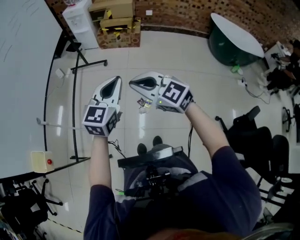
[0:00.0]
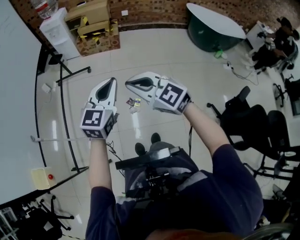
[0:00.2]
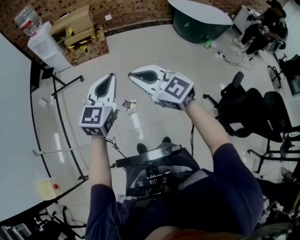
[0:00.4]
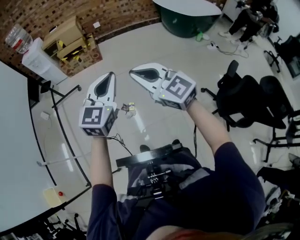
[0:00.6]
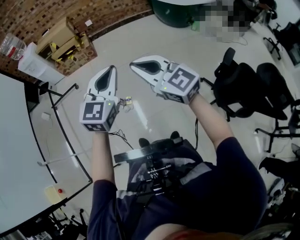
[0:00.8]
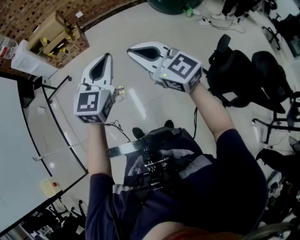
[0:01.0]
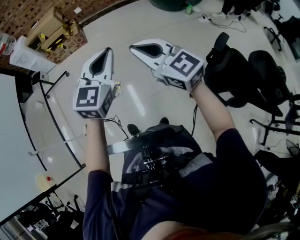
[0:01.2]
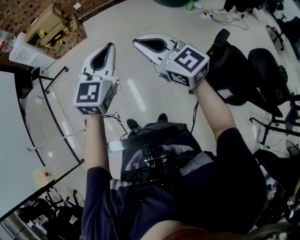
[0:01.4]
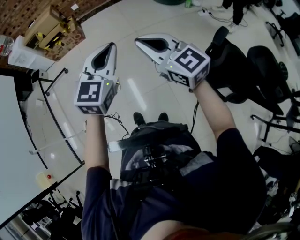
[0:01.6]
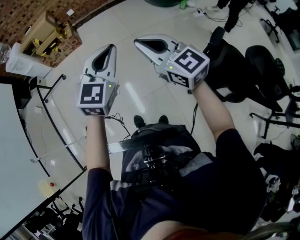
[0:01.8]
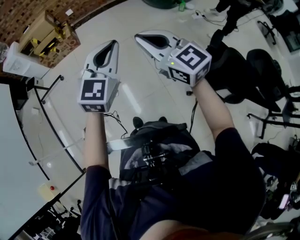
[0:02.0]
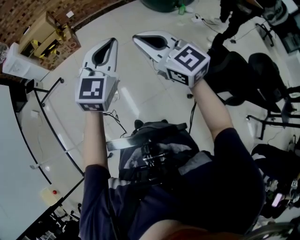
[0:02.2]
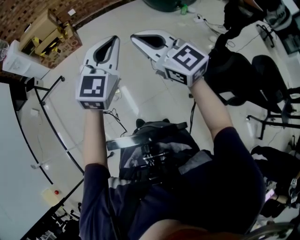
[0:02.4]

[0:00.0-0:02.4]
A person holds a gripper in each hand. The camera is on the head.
0:00.0 to 0:01.2: The left gripper ends up some 40 cm from where it was, and turns by roughly 20 degrees. Meanwhile the right gripper moves roughly 40 cm, and rotates roughly 40 degrees.
0:01.2 to 0:02.4: Both grippers travel together forward, approximately 5 cm.

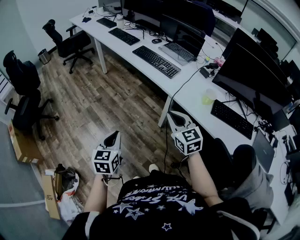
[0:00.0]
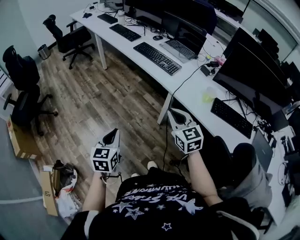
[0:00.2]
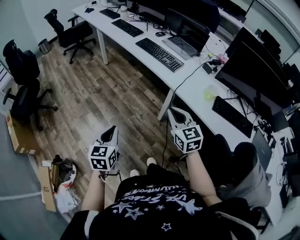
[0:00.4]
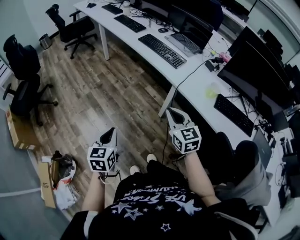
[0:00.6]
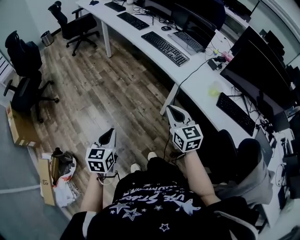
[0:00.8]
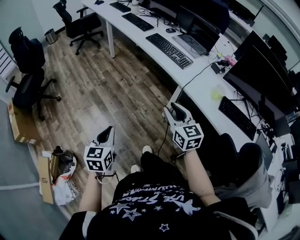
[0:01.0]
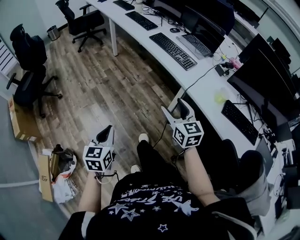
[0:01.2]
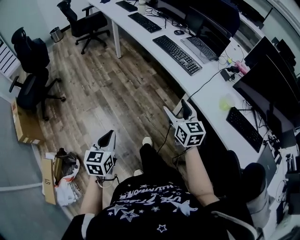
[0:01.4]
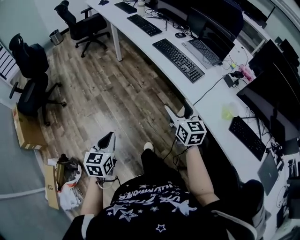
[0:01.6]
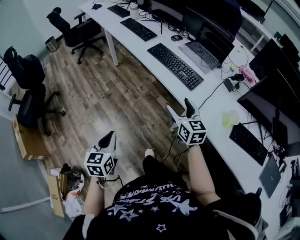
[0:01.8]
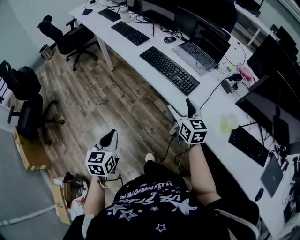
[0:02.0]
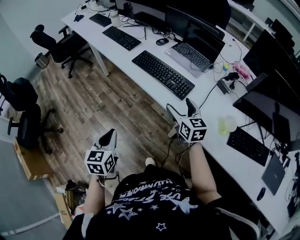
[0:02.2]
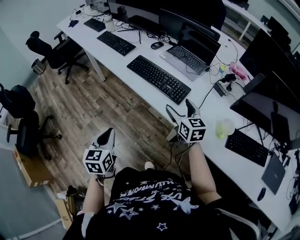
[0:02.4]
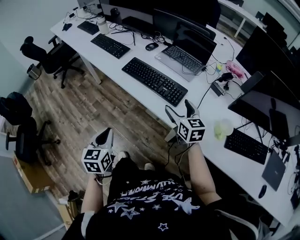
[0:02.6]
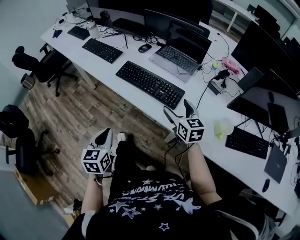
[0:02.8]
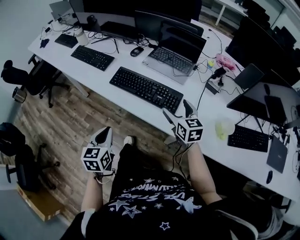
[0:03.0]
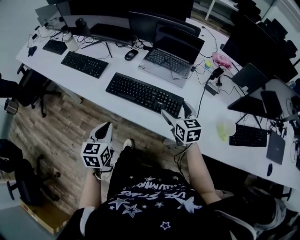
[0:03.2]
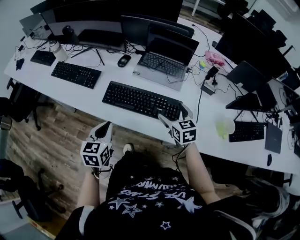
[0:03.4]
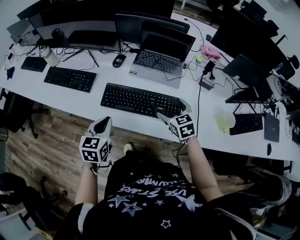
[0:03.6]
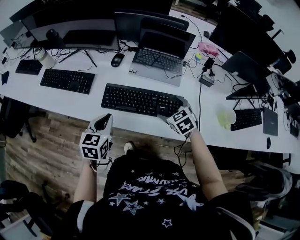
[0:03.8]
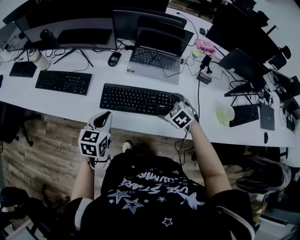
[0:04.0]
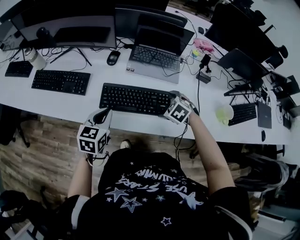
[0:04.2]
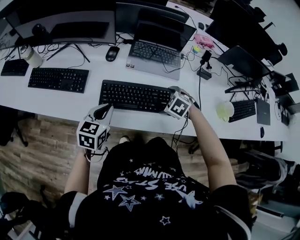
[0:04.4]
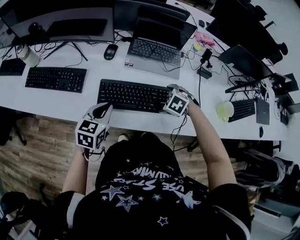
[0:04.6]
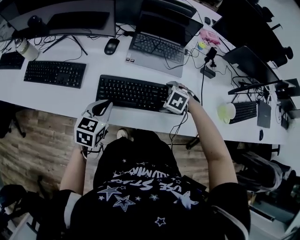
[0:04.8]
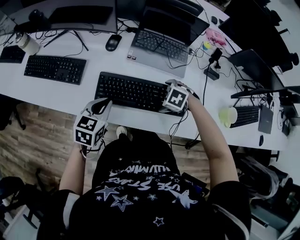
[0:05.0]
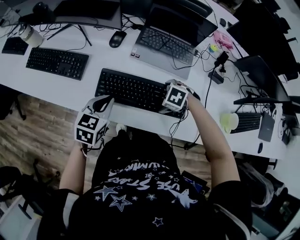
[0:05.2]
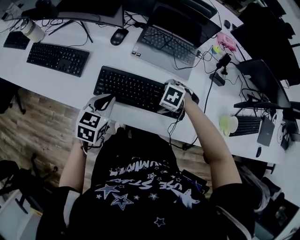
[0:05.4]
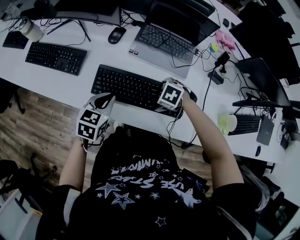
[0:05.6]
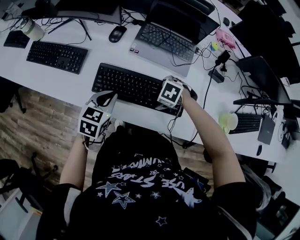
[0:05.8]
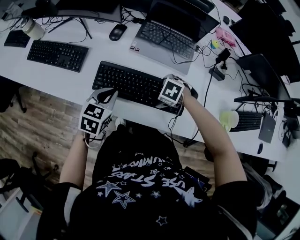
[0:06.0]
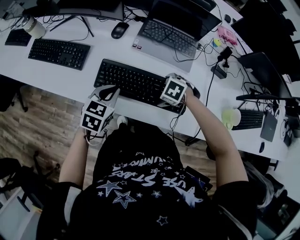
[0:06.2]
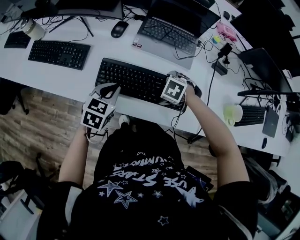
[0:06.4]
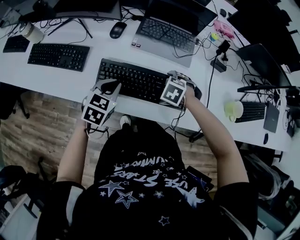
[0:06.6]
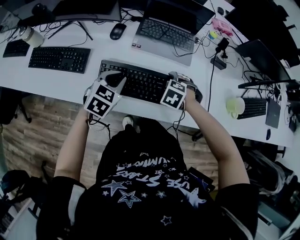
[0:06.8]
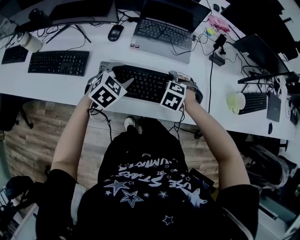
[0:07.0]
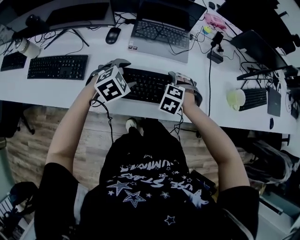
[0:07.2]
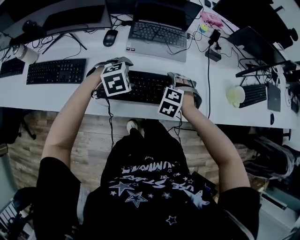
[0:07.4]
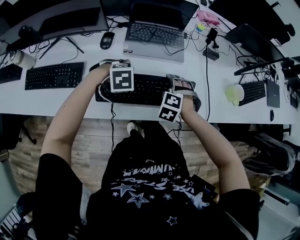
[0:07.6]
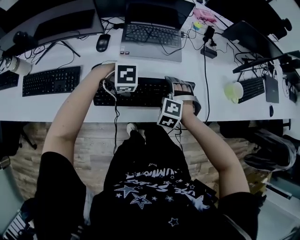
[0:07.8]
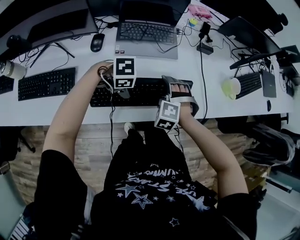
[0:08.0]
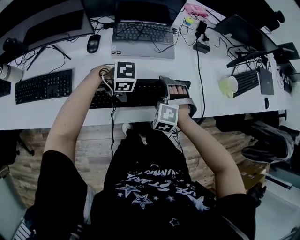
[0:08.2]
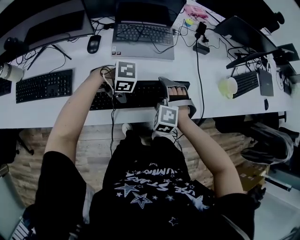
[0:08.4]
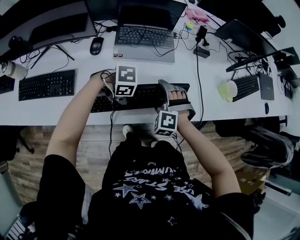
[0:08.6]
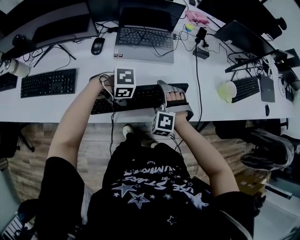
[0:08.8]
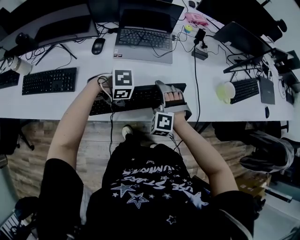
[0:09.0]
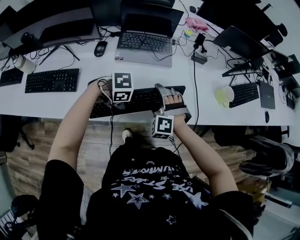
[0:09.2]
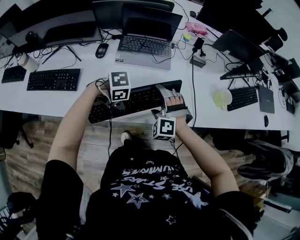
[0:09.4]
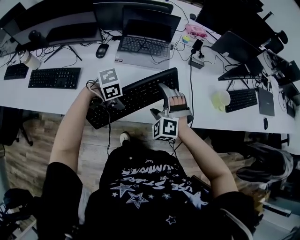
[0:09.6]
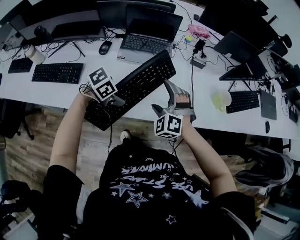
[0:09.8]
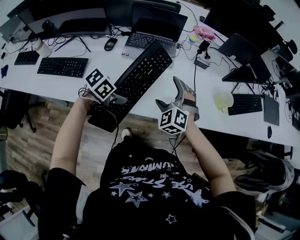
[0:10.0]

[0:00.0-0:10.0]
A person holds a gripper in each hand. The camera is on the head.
0:00.0 to 0:01.4: The right gripper heads forward and to the left, covering some 10 cm, and opens up; the left gripper travels to the left by roughly 10 cm.
0:01.4 to 0:02.8: The left gripper moves forward, some 40 cm. Meanwhile the right gripper goes some 35 cm forward and to the right.
0:02.8 to 0:04.2: The left gripper shifts by roughly 35 cm, and rotates roughly 40 degrees. The right gripper moves about 20 cm, and tips its fingers downward by approximately 50 degrees.
0:04.2 to 0:05.8: The left gripper shifts by some 5 cm. Meanwhile the right gripper is displaced downward by about 5 cm, and rotates approximately 30 degrees.
0:05.8 to 0:07.2: The right gripper rotates roughly 20 degrees. The left gripper ends up about 5 cm from where it was, rolls clockwise, seen from behind, by approximately 40 degrees, and opens its fingers.
0:07.2 to 0:08.6: The left gripper ends up some 10 cm from where it was, turns by roughly 60 degrees, and closes its fingers. The right gripper swivels approximately 20 degrees.
0:08.6 to 0:10.0: The two grippers go roughly 10 cm upward. The right gripper turns by some 30 degrees. The left gripper rotates roughly 60 degrees.

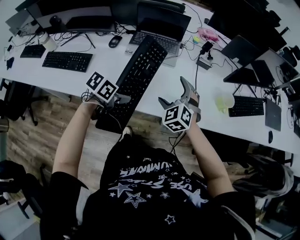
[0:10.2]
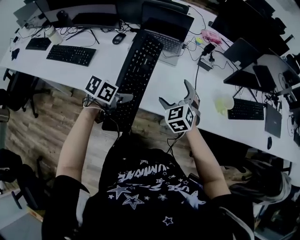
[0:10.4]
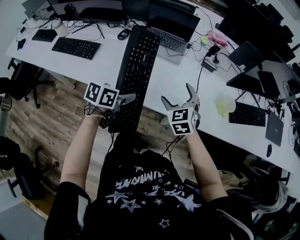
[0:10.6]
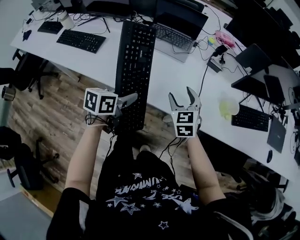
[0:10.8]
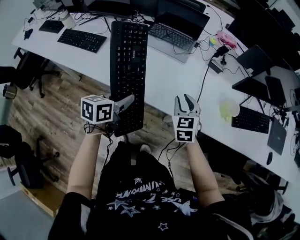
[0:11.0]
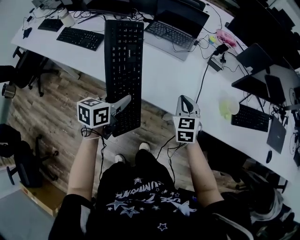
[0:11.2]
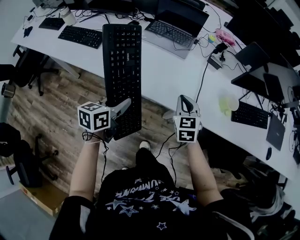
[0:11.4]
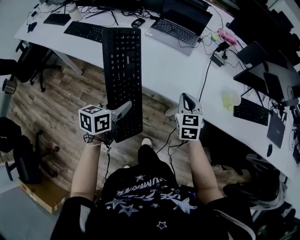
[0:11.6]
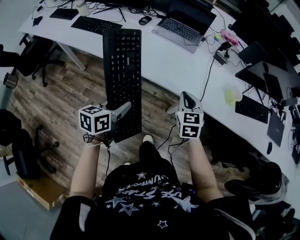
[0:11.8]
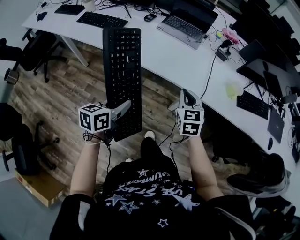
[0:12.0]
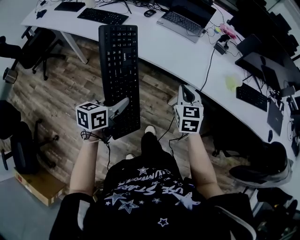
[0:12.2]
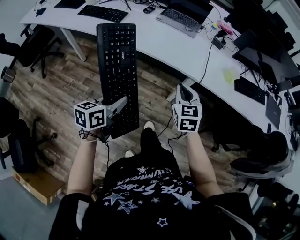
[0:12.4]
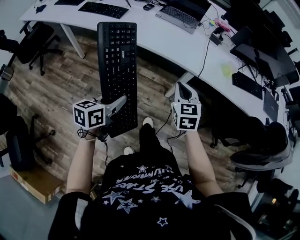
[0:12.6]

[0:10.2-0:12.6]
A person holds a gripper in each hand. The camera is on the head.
0:10.2 to 0:11.4: The right gripper shifts by some 10 cm, rotates roughly 30 degrees, and closes up. Meanwhile the left gripper ends up about 10 cm from where it was, and turns by roughly 40 degrees.
0:11.4 to 0:12.6: The grippers both shift backward by about 30 cm.

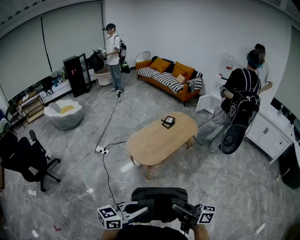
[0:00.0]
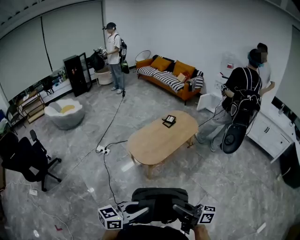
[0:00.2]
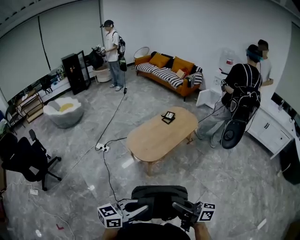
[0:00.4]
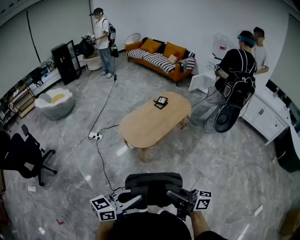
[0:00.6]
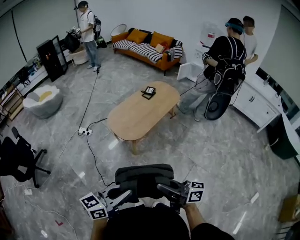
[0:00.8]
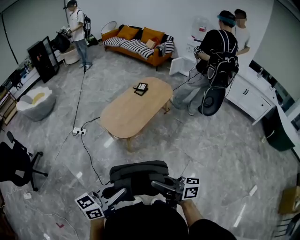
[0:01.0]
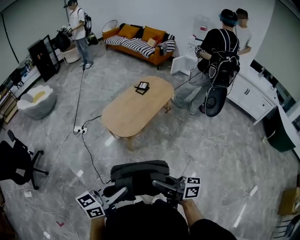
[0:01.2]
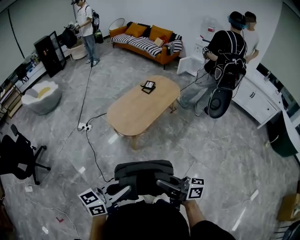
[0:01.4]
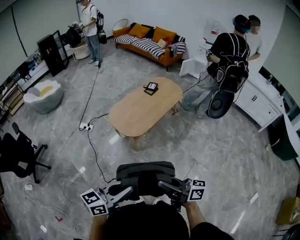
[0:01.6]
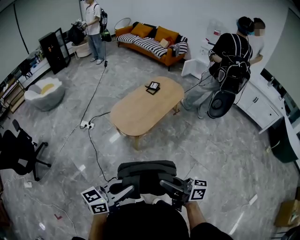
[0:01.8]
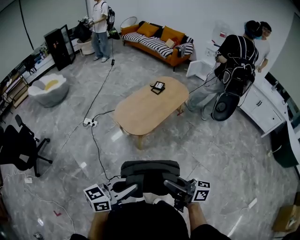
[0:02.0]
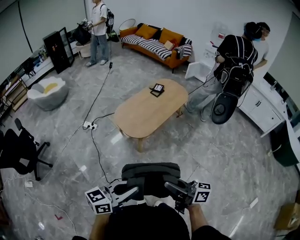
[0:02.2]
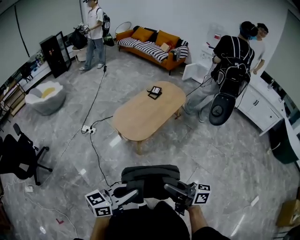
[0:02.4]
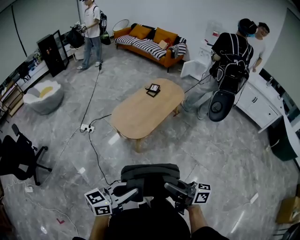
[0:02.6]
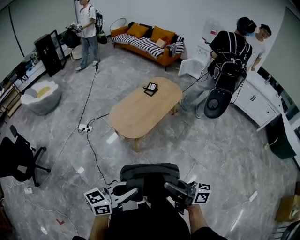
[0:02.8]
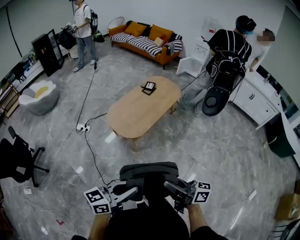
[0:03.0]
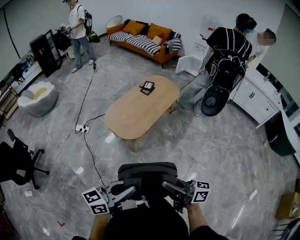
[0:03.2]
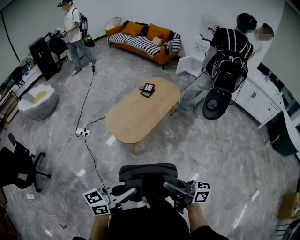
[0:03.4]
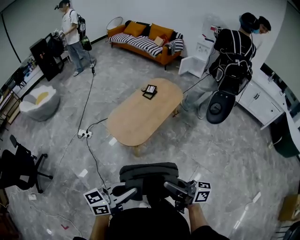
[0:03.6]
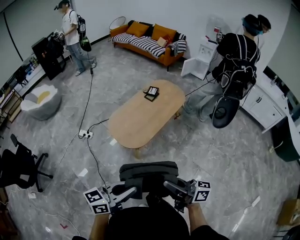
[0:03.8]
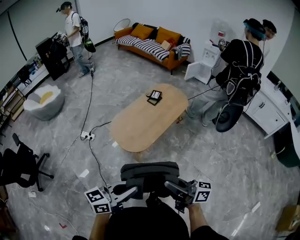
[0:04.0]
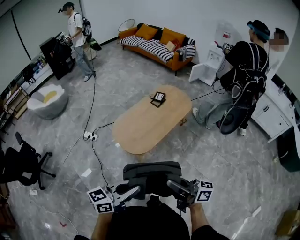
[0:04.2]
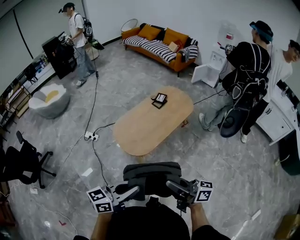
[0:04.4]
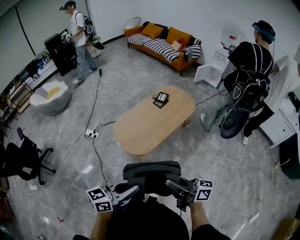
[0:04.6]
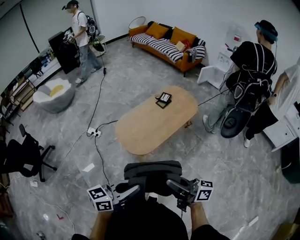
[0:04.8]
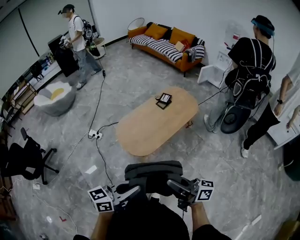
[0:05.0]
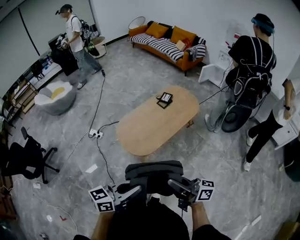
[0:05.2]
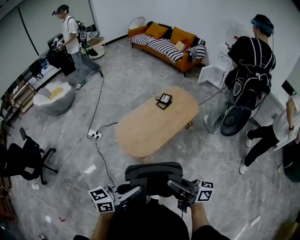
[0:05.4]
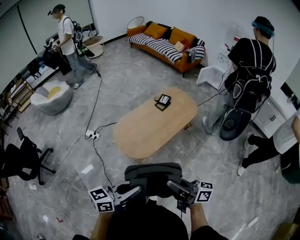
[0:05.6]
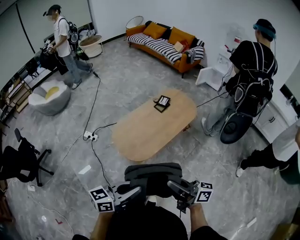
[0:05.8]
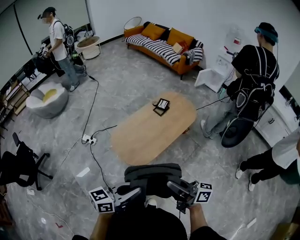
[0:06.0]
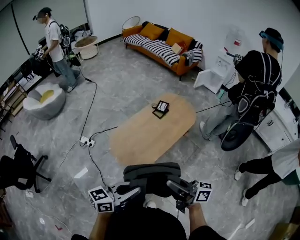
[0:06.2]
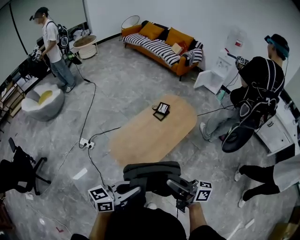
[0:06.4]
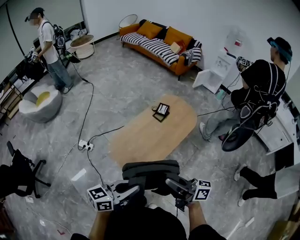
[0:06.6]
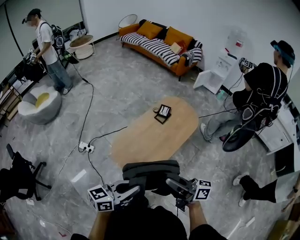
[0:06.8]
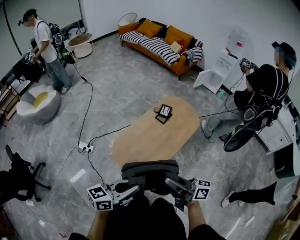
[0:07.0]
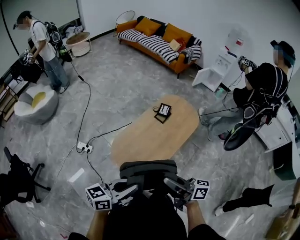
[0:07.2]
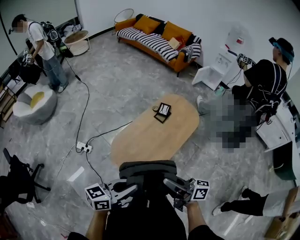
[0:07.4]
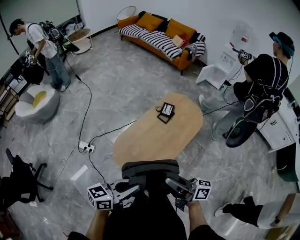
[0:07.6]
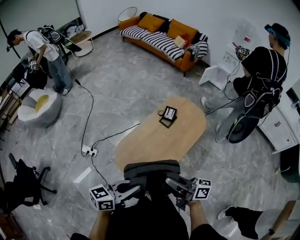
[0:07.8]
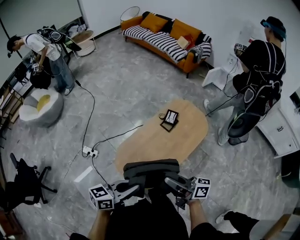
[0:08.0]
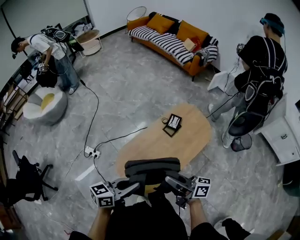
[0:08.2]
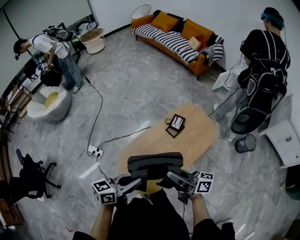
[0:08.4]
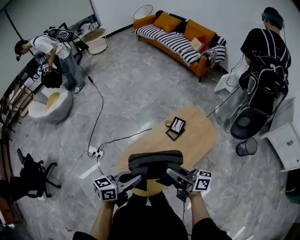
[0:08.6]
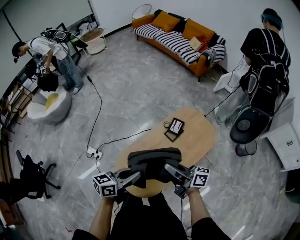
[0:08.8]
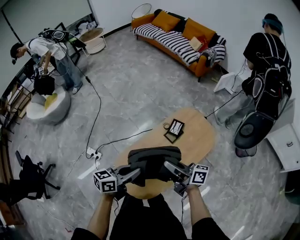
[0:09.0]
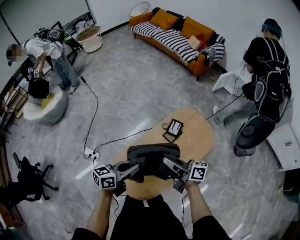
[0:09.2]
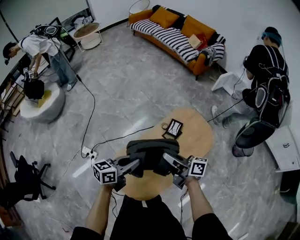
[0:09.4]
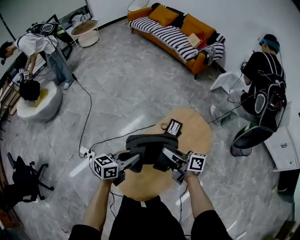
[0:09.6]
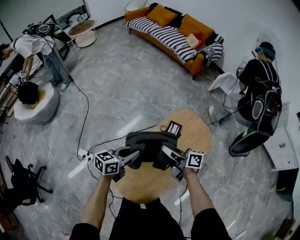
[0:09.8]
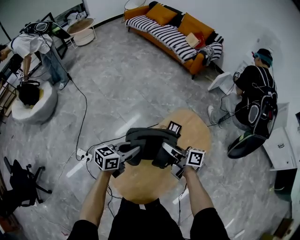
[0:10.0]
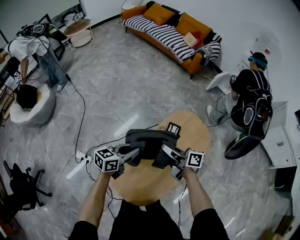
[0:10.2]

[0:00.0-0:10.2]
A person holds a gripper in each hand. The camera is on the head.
0:00.0 to 0:03.0: There are only small adjustments of the grippers.
0:03.0 to 0:04.4: Both grippers travel together forward, approximately 15 cm.
0:04.4 to 0:05.8: Both grippers move forward, about 5 cm.
0:05.8 to 0:07.2: Both grippers move forward and to the left, about 20 cm.
0:07.2 to 0:08.8: Both grippers travel together forward, roughly 25 cm.
0:08.8 to 0:10.2: Both grippers travel together forward, roughly 20 cm.
